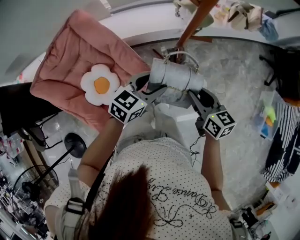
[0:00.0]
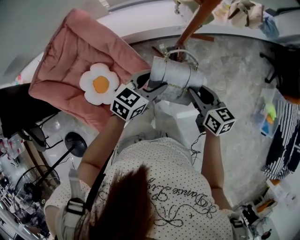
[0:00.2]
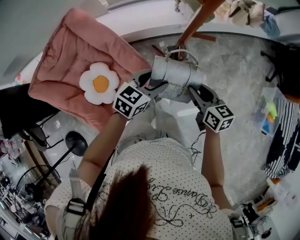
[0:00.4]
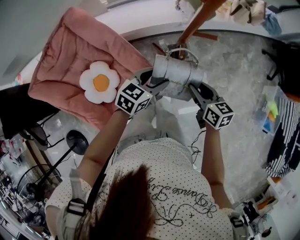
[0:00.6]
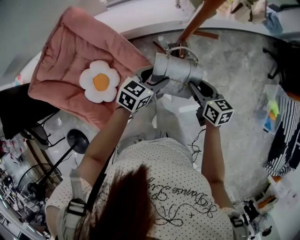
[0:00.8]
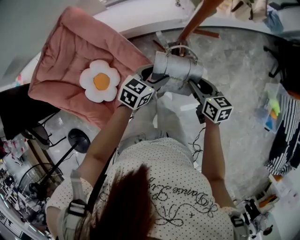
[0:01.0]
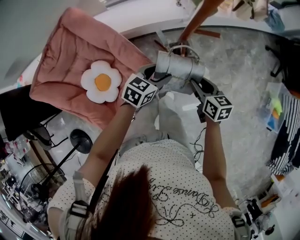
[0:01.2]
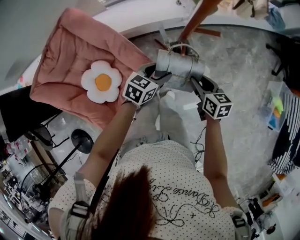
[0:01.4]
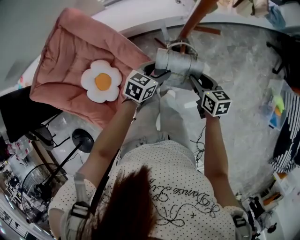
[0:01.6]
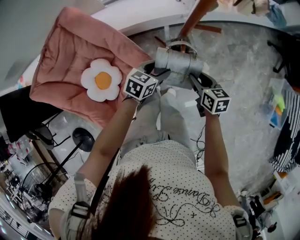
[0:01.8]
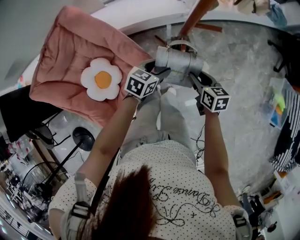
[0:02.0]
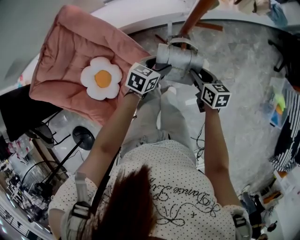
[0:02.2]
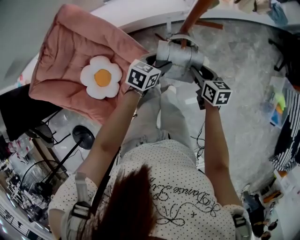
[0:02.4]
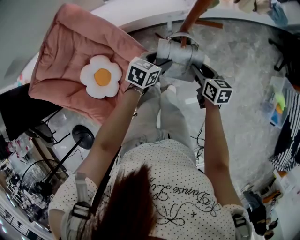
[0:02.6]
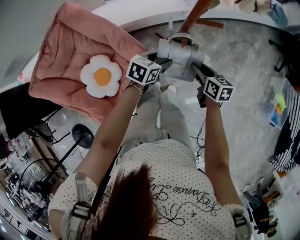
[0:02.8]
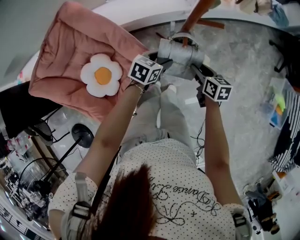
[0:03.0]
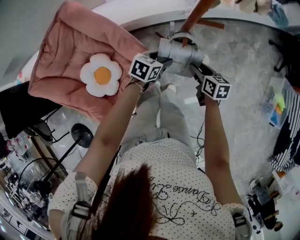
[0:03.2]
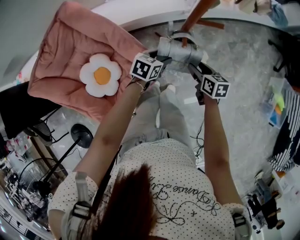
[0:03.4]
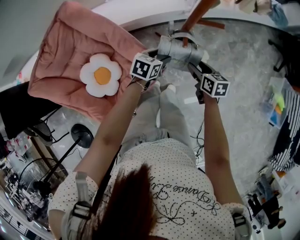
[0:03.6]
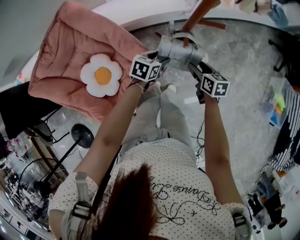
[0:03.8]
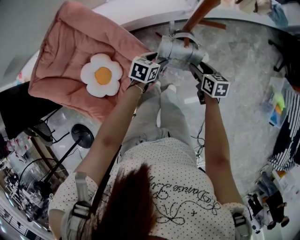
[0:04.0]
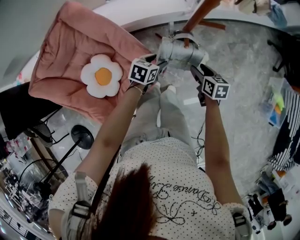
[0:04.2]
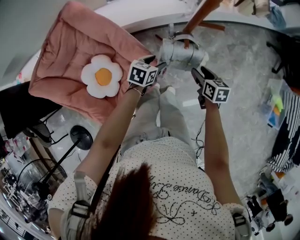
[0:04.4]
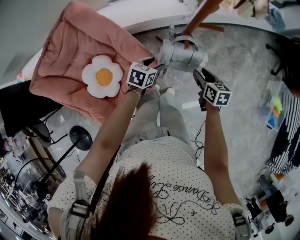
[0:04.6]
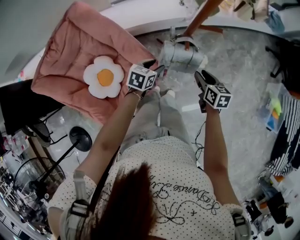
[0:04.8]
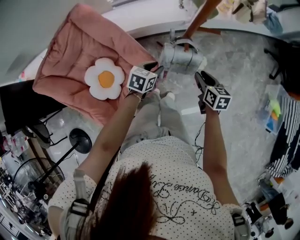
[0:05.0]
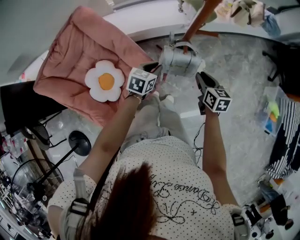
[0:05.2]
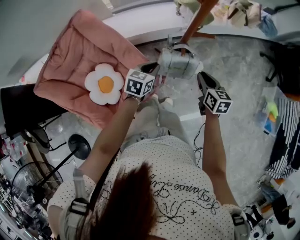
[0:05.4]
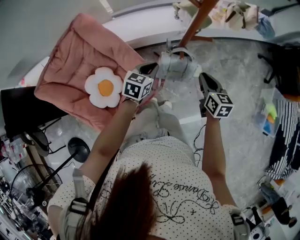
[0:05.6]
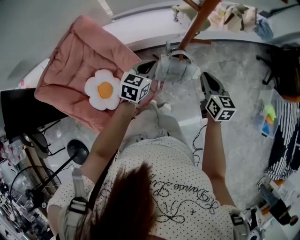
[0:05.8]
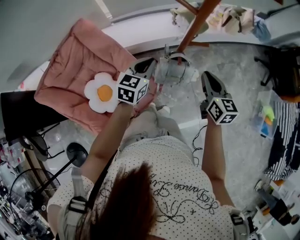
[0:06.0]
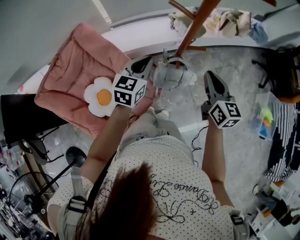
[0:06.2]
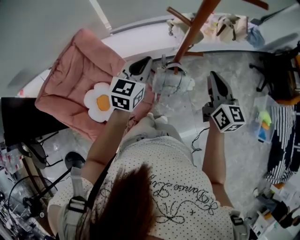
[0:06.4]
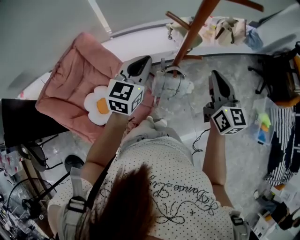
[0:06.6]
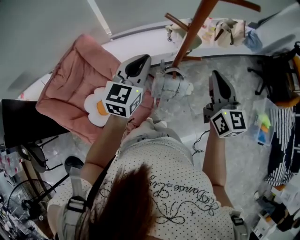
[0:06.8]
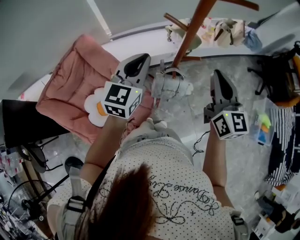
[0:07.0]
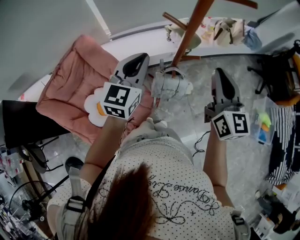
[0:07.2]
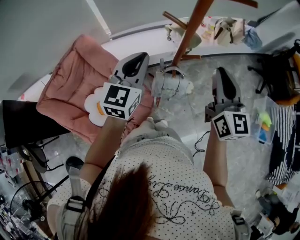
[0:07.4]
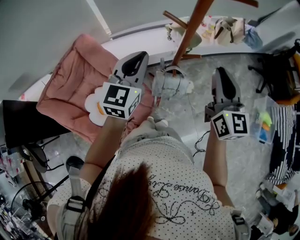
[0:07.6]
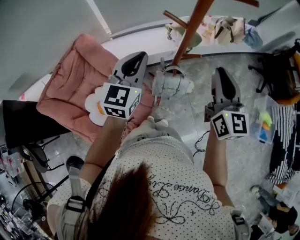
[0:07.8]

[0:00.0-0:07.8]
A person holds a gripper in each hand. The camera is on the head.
0:00.0 to 0:01.6: The two grippers go roughly 15 cm downward.
0:01.6 to 0:03.2: The right gripper changes place by some 5 cm, while the left gripper travels downward by some 5 cm.
0:03.2 to 0:04.6: The grippers move only a little.
0:04.6 to 0:06.2: Both grippers move upward, approximately 25 cm. The left gripper swivels roughly 30 degrees, and closes up. Meanwhile the right gripper swivels roughly 30 degrees, and closes.
0:06.2 to 0:07.8: The grippers both shift upward by roughly 15 cm.

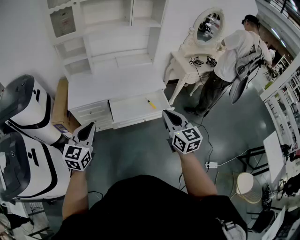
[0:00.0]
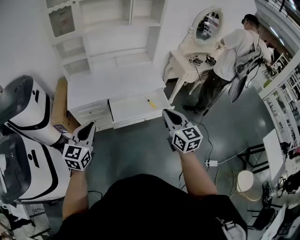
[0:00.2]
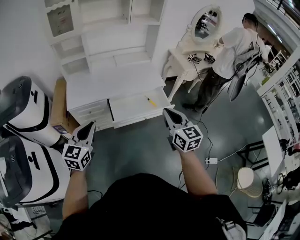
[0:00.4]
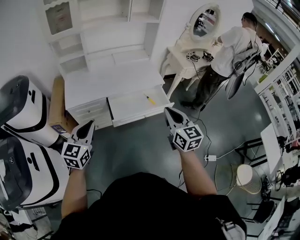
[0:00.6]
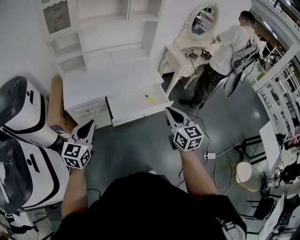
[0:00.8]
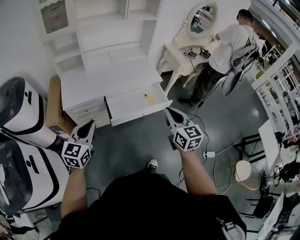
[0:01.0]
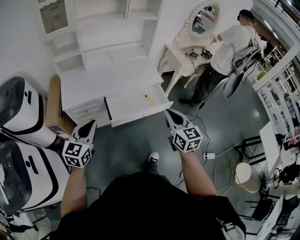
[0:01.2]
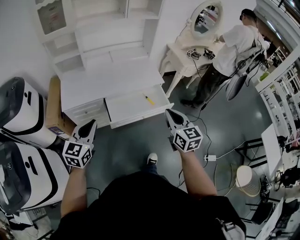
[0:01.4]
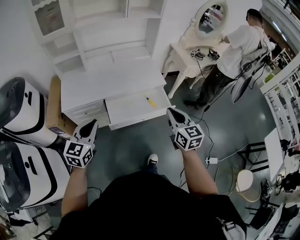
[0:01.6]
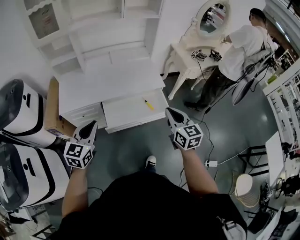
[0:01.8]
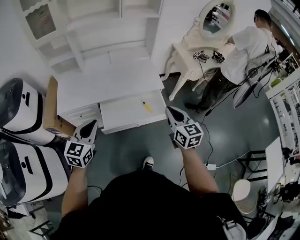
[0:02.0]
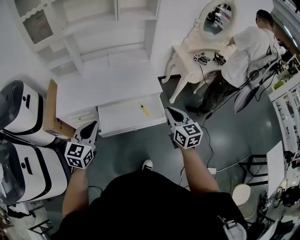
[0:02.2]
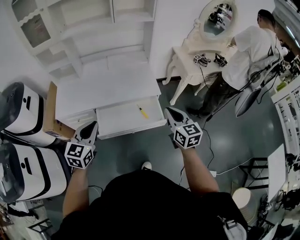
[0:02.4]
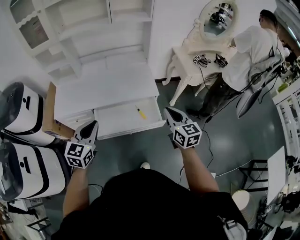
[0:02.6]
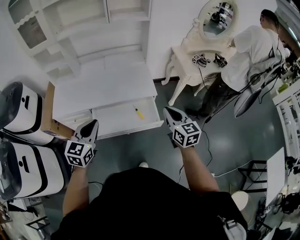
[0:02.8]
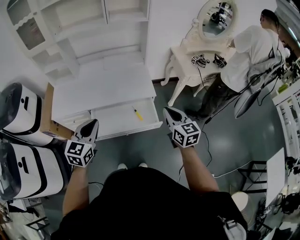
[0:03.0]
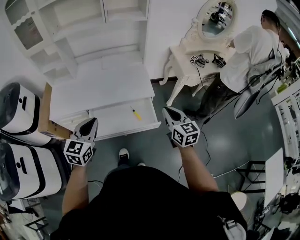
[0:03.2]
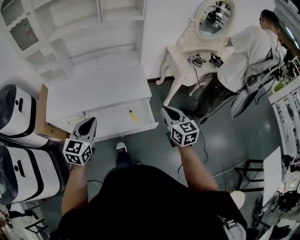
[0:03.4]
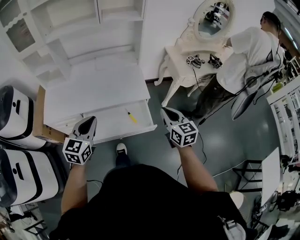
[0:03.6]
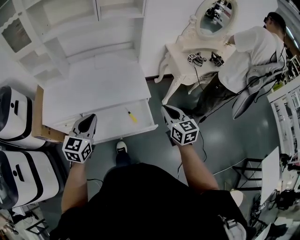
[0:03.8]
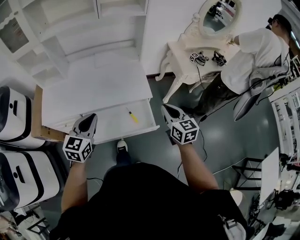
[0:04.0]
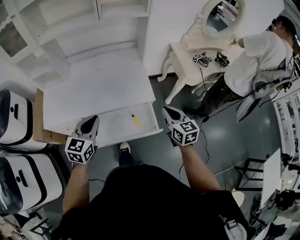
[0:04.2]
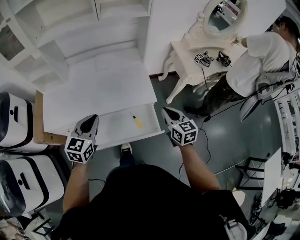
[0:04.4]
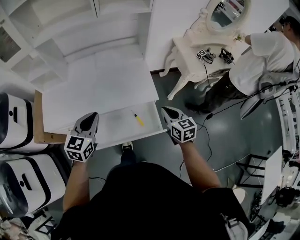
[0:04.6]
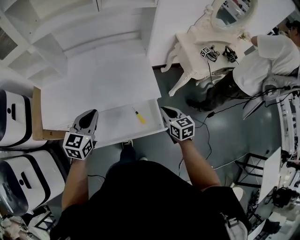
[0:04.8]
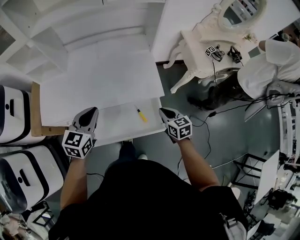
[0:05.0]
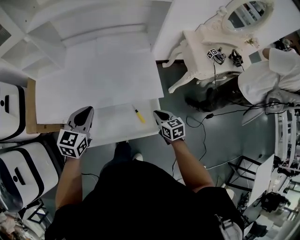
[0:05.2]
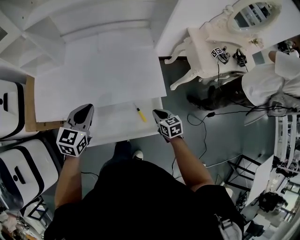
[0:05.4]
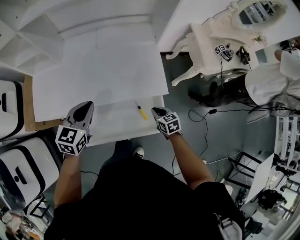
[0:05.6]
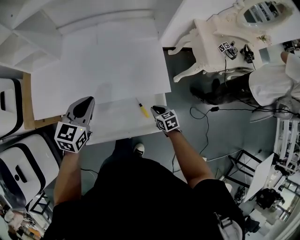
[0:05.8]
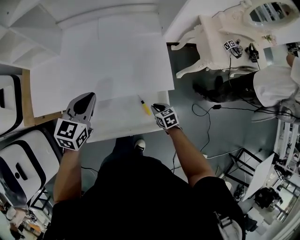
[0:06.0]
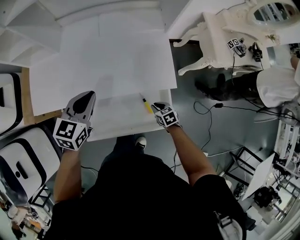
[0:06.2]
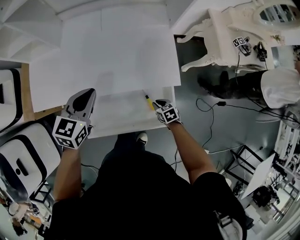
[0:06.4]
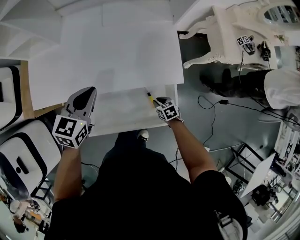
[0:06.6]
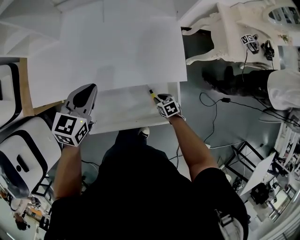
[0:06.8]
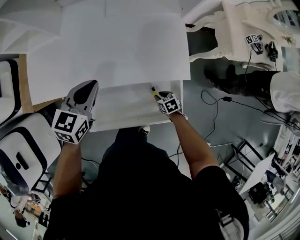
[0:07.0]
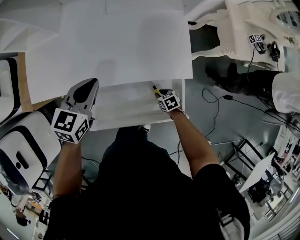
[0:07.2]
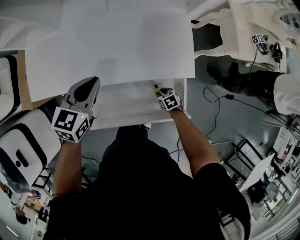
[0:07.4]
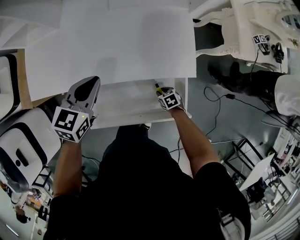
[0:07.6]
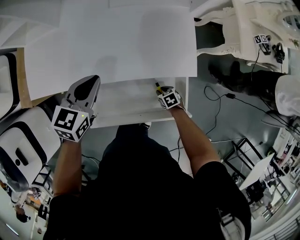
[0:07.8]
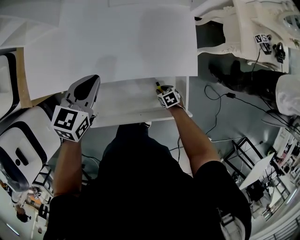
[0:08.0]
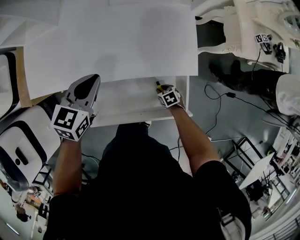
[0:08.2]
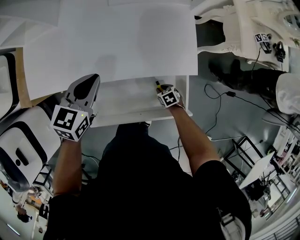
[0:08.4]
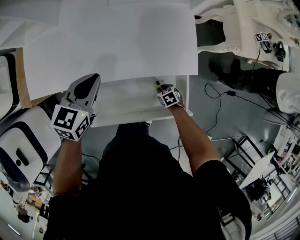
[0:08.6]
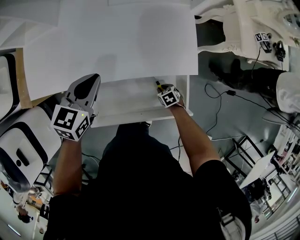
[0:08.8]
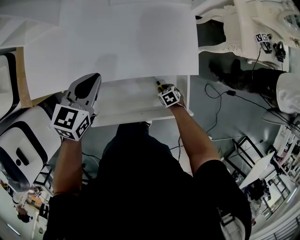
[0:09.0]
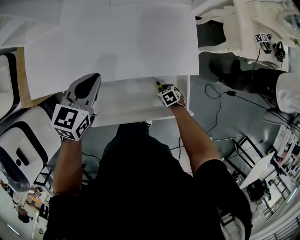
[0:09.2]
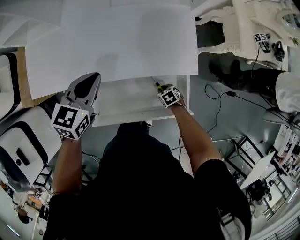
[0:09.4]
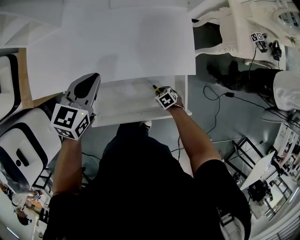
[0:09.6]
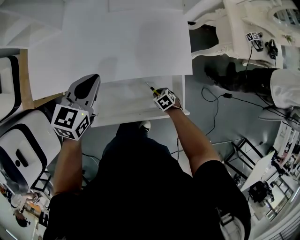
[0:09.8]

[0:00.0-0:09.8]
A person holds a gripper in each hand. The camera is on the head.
0:00.0 to 0:01.4: The grippers both shift forward by approximately 5 cm.
0:01.4 to 0:02.8: Both grippers move to the right and forward, approximately 30 cm.
0:02.8 to 0:04.2: The left gripper shifts approximately 15 cm forward. The right gripper goes roughly 15 cm forward and downward.
0:04.2 to 0:05.6: The left gripper heads forward, downward and to the left, covering about 20 cm, while the right gripper moves downward, some 25 cm, and rotates some 30 degrees.
0:05.6 to 0:07.0: The left gripper shifts some 10 cm downward and forward. The right gripper heads downward, covering approximately 20 cm, and rotates roughly 20 degrees.
0:07.0 to 0:09.8: The grippers make only small movements.

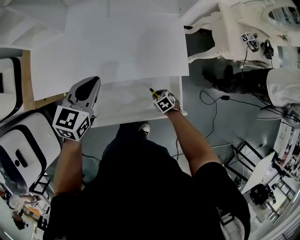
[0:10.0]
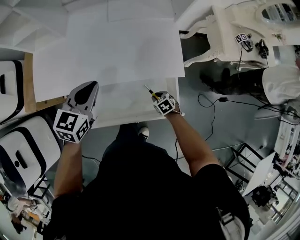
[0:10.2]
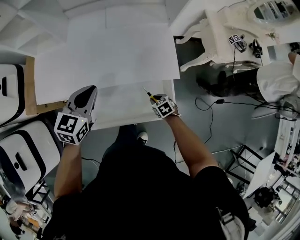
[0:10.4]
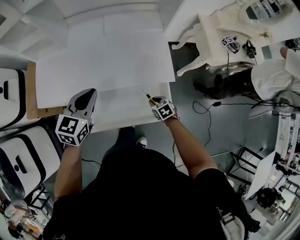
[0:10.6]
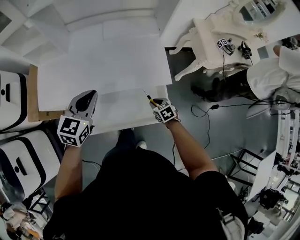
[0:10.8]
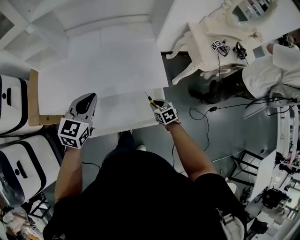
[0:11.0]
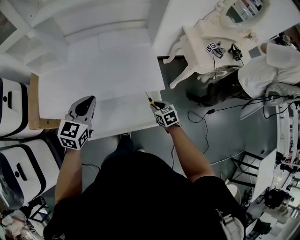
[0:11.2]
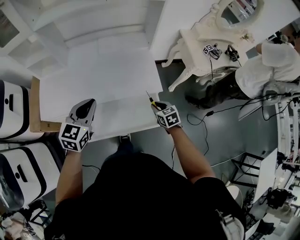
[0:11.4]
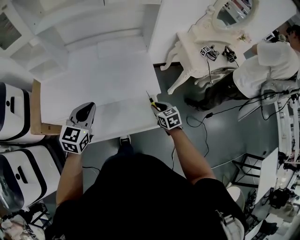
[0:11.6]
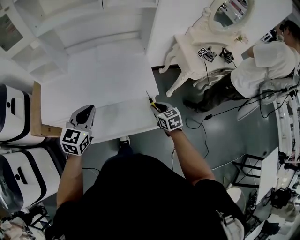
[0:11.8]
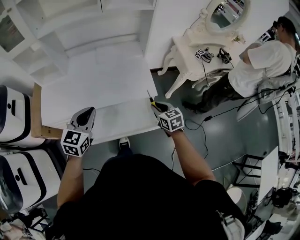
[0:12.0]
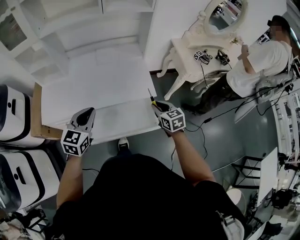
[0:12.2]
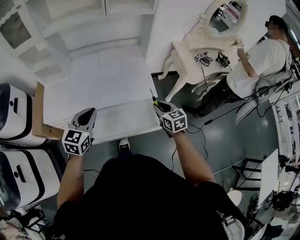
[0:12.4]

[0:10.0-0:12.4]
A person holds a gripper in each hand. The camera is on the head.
0:10.0 to 0:11.2: The left gripper heads upward and backward, covering about 15 cm. Meanwhile the right gripper travels upward by about 20 cm, and turns by some 30 degrees.
0:11.2 to 0:12.4: The left gripper goes approximately 10 cm backward, while the right gripper heads upward, covering approximately 15 cm.

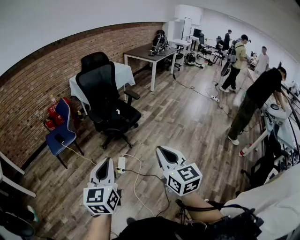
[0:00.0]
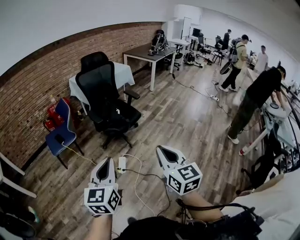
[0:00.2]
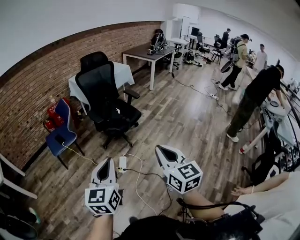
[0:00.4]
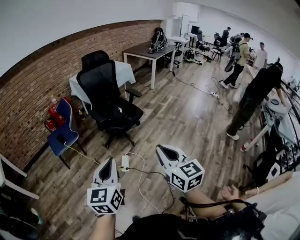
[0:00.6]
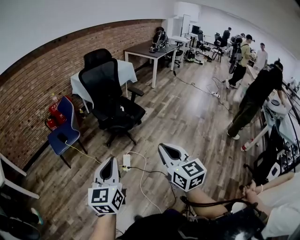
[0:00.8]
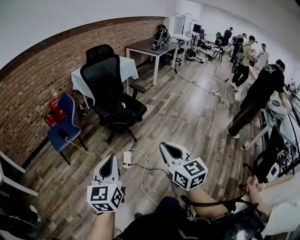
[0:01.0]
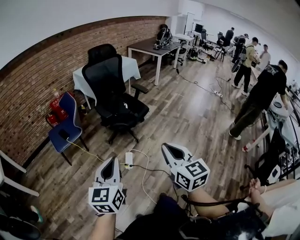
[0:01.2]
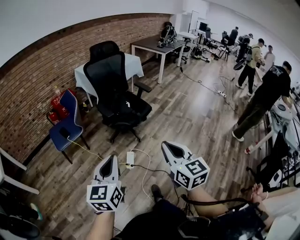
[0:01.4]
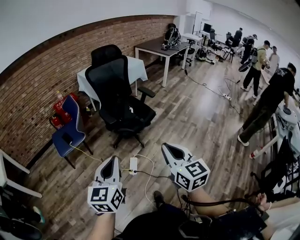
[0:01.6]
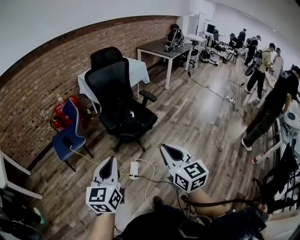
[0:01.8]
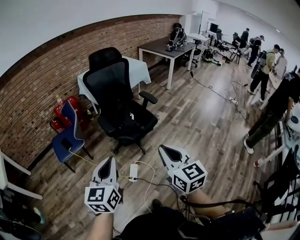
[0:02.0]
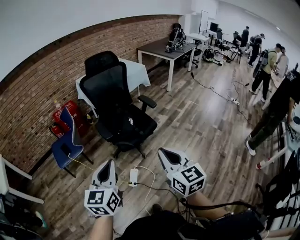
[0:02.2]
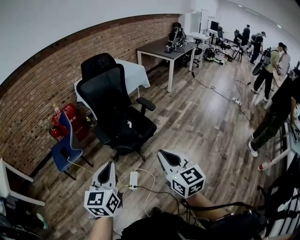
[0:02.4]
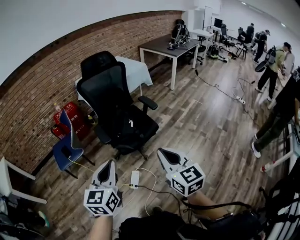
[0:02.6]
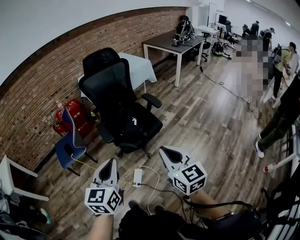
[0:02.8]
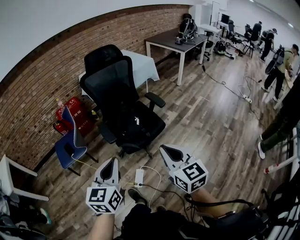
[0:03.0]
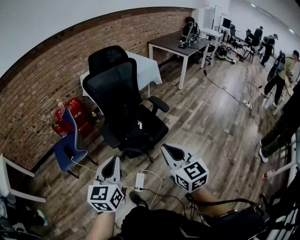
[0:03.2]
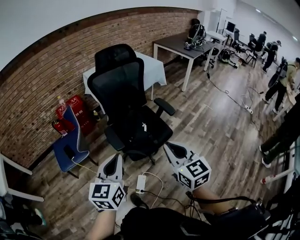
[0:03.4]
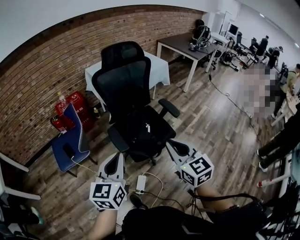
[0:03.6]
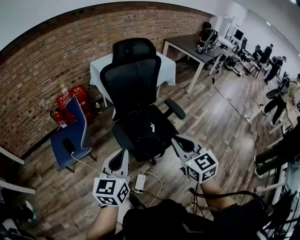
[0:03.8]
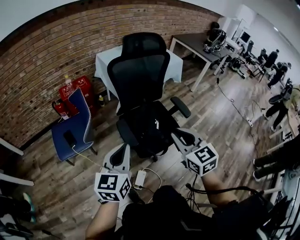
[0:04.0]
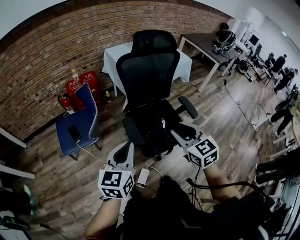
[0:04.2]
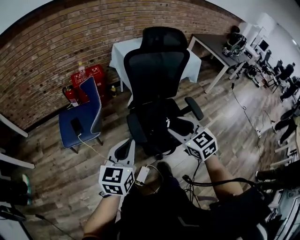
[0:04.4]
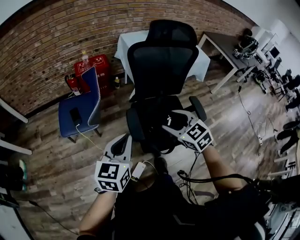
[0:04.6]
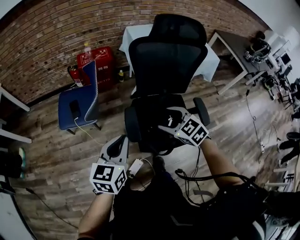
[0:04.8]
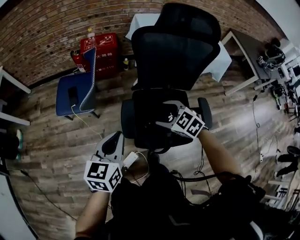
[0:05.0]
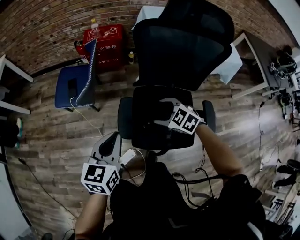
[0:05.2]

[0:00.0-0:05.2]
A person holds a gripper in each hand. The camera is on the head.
0:00.0 to 0:01.8: Both grippers move forward, roughly 15 cm.
0:01.8 to 0:03.4: Both grippers move forward, about 30 cm.
0:03.4 to 0:05.2: The left gripper shifts by about 25 cm, and changes its angle by approximately 30 degrees. The right gripper shifts by approximately 50 cm, angles its fingers downward, by some 40 degrees, and opens up.
